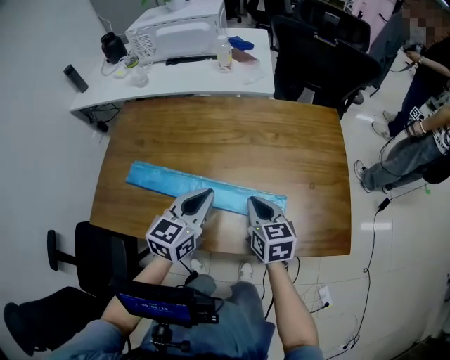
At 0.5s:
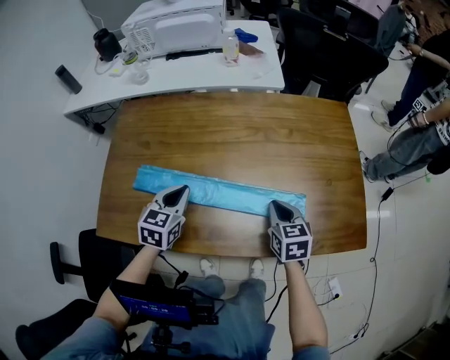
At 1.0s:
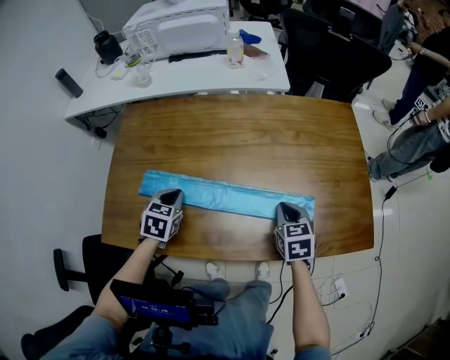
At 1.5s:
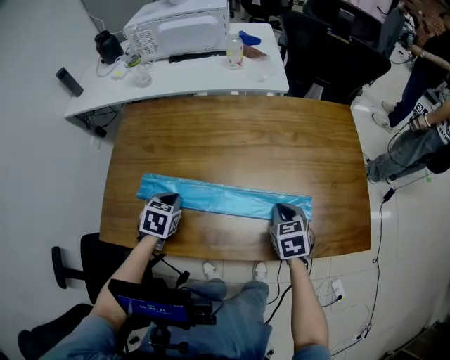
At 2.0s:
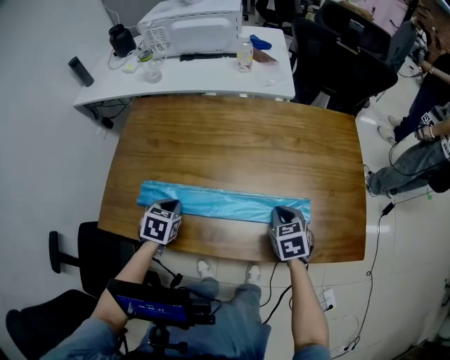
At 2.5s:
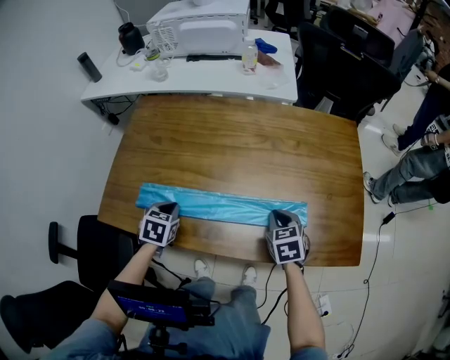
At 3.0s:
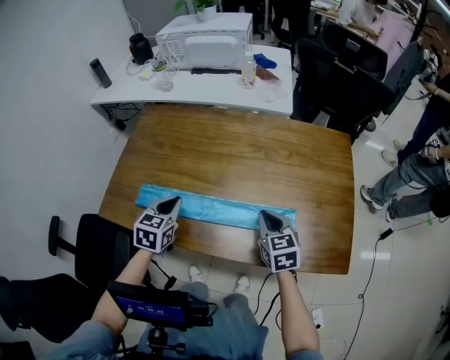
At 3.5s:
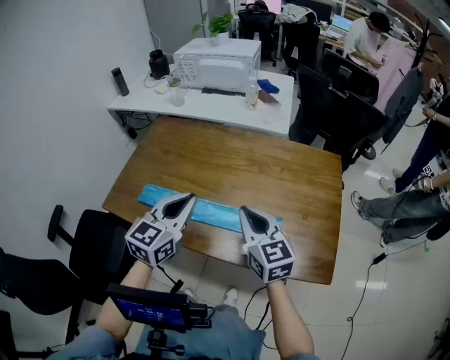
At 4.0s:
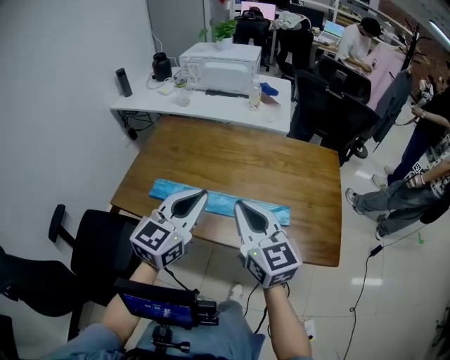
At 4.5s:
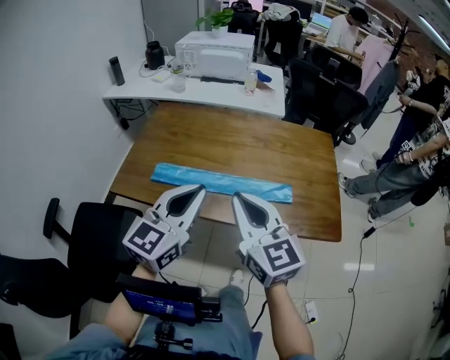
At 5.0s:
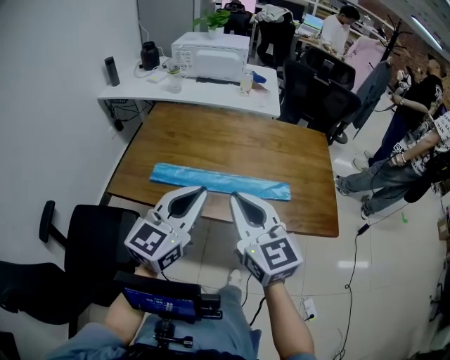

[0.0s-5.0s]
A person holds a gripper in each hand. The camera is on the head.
0.0s to 2.5s: The right gripper shifts approximately 5 cm downward, and rotates some 30 degrees; the left gripper goes some 25 cm to the left and downward, and angles its fingers downward, by roughly 40 degrees.
2.5s to 5.0s: The left gripper travels upward and backward by roughly 35 cm, and points its fingers about 60 degrees further upward, while the right gripper is displaced upward, backward and to the left by some 40 cm, and tips its fingers upward by some 40 degrees.

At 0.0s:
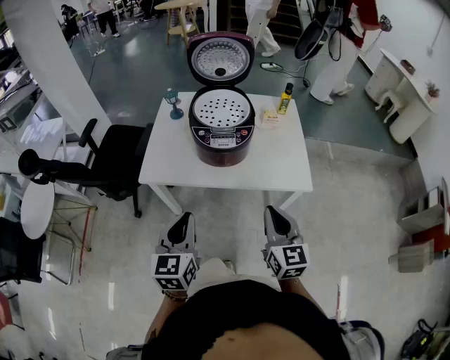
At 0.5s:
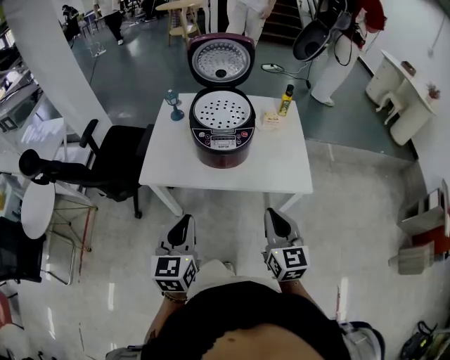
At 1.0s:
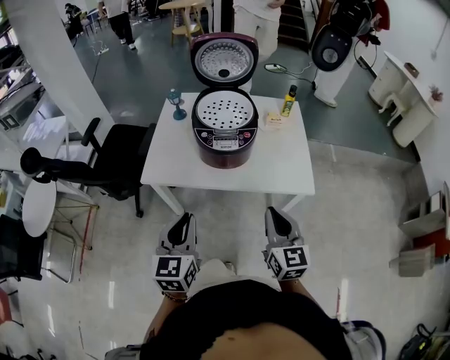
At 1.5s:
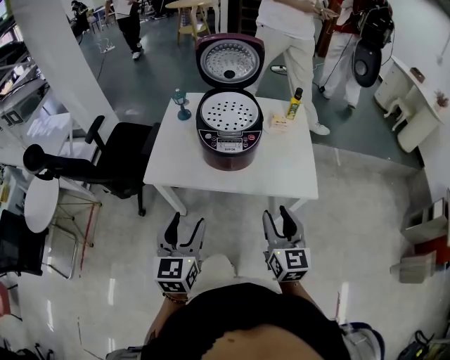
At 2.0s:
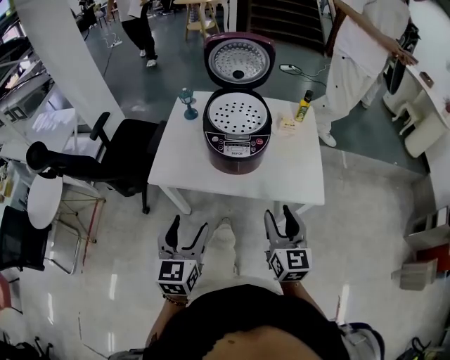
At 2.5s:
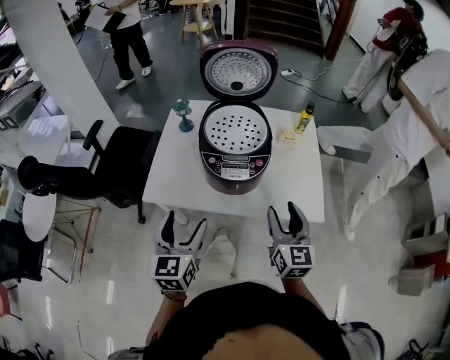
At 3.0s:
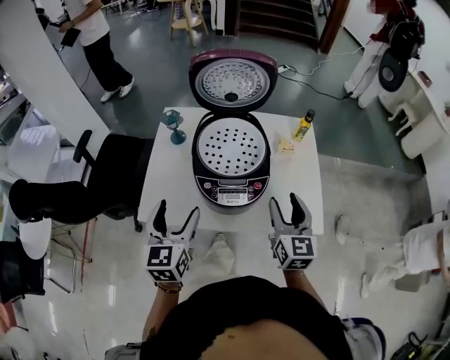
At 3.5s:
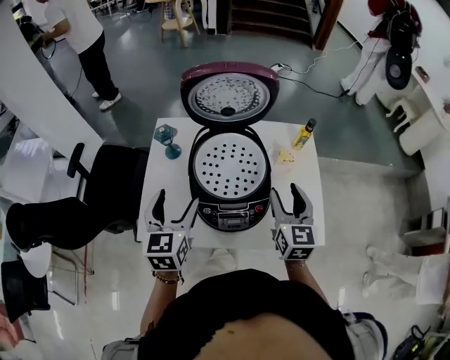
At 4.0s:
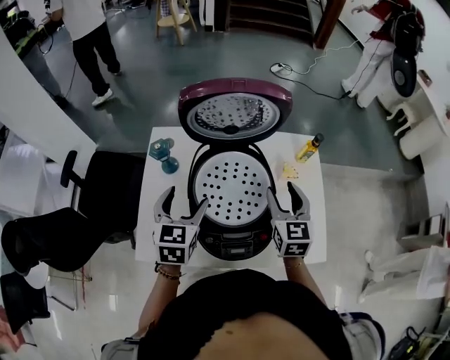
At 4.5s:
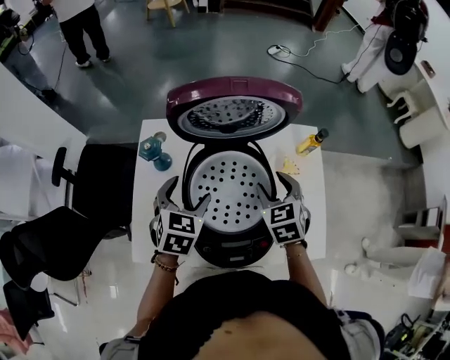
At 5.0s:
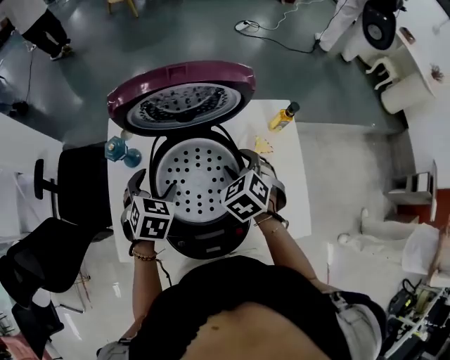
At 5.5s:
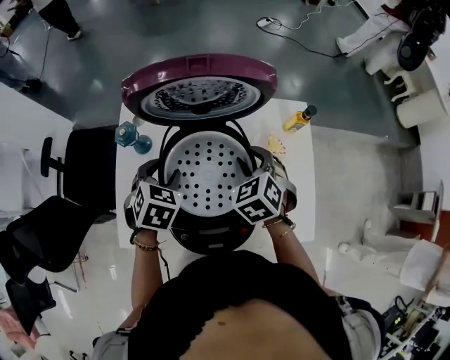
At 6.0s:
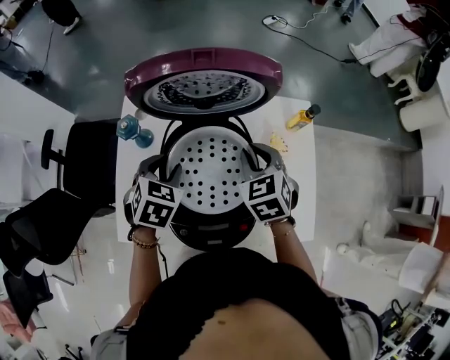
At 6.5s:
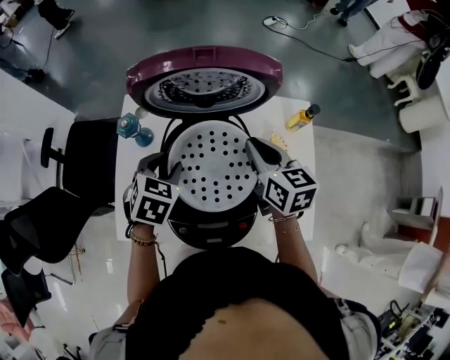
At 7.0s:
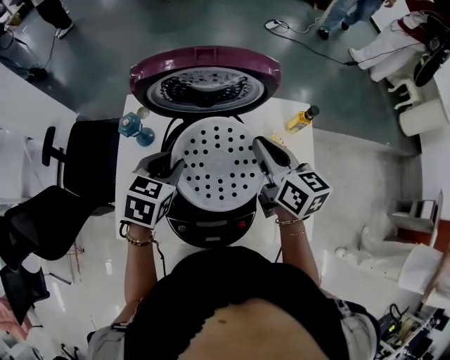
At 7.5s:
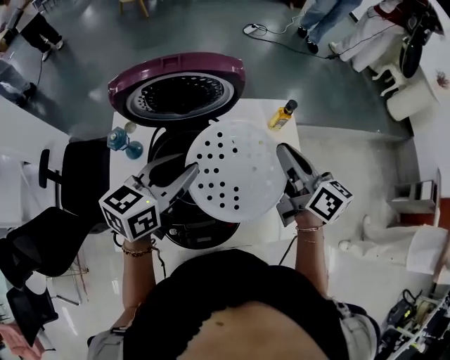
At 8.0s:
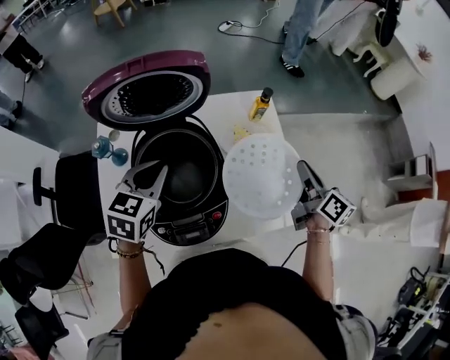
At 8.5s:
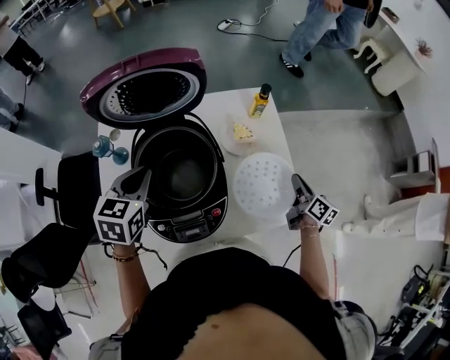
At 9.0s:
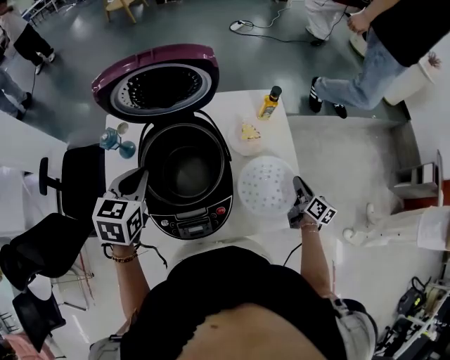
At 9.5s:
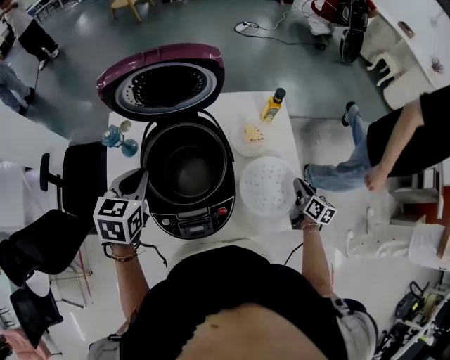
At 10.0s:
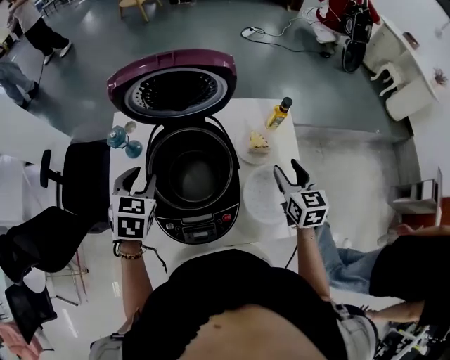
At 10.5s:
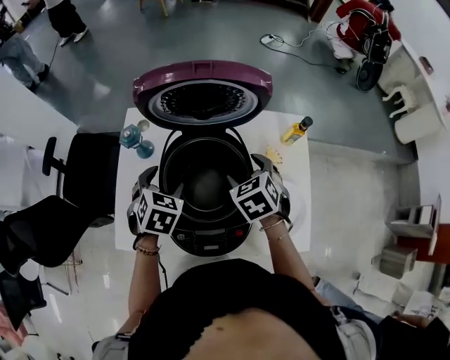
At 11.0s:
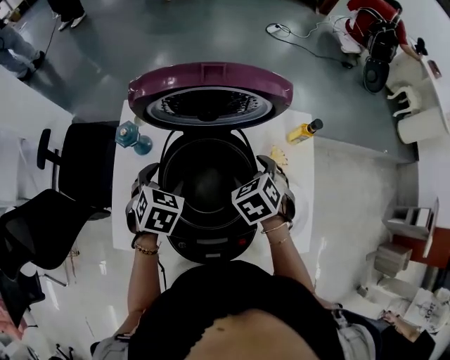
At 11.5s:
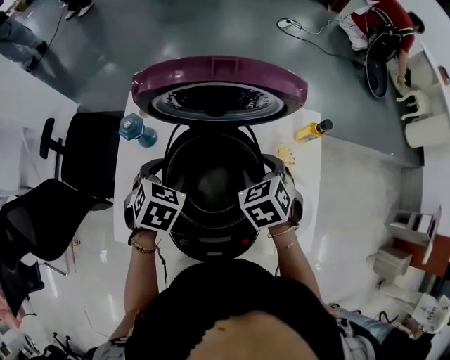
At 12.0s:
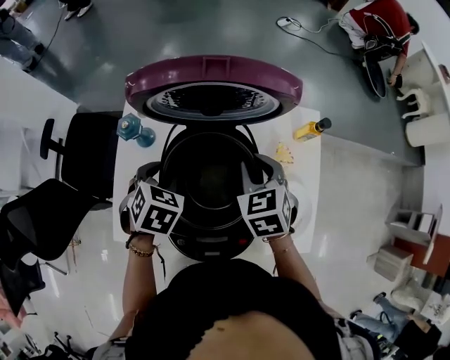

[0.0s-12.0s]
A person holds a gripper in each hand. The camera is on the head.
0.0s to 2.0s: The right gripper opens its fingers. Meanwhile the left gripper opens.
2.0s to 4.0s: Both grippers move forward, approximately 40 cm.
4.0s to 6.0s: The grippers both shift forward by roughly 5 cm. The left gripper changes its angle by approximately 30 degrees, and closes its fingers. The right gripper turns by approximately 30 degrees, and closes.
6.0s to 8.0s: The left gripper heads to the right and upward, covering approximately 10 cm, and turns by some 20 degrees. Meanwhile the right gripper goes approximately 30 cm to the right, and twists roughly 70 degrees clockwise, seen from behind.
8.0s to 10.0s: The two grippers go roughly 10 cm to the left. The left gripper changes its angle by roughly 20 degrees; the right gripper reaches some 20 cm downward, then returns, rotates around the line of its fingers by some 40 degrees, counterclockwise from behind, and opens.
10.0s to 12.0s: The right gripper goes approximately 20 cm to the left and forward, turns by approximately 30 degrees, and closes up; the left gripper ends up roughly 5 cm from where it was, and opens, then closes once more.

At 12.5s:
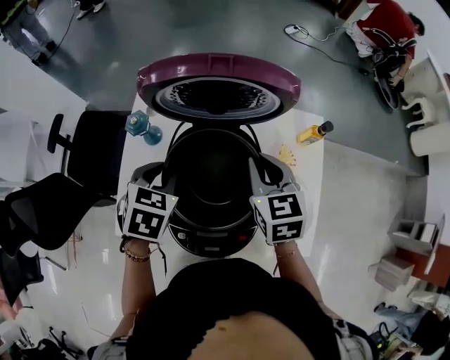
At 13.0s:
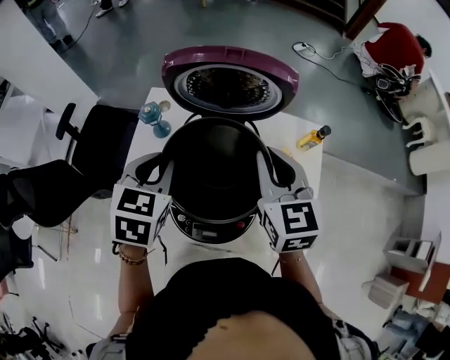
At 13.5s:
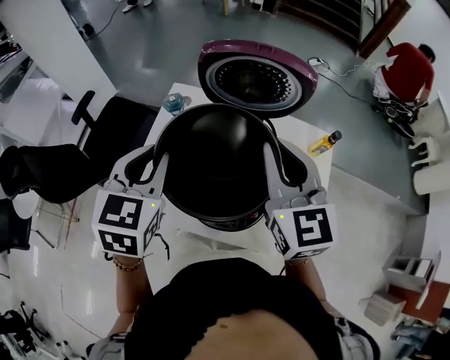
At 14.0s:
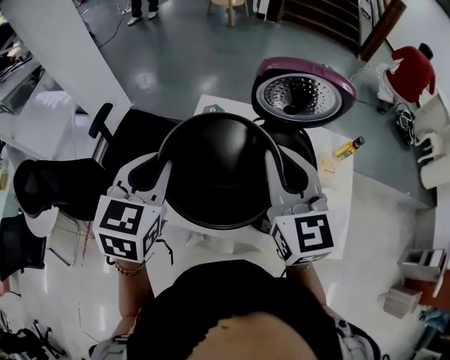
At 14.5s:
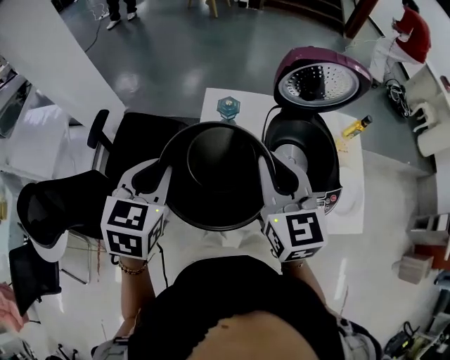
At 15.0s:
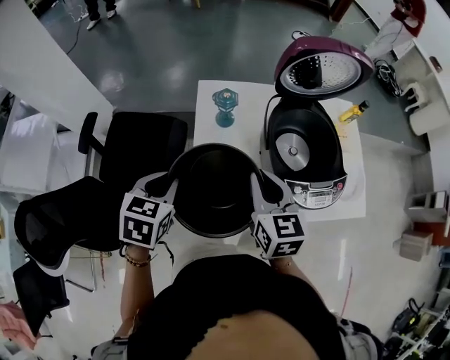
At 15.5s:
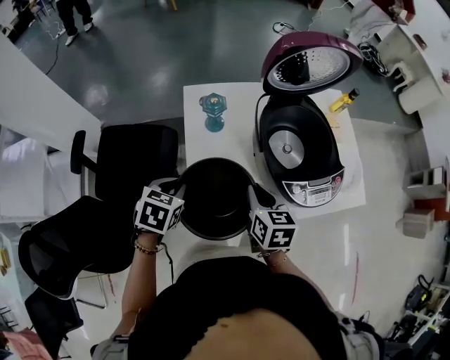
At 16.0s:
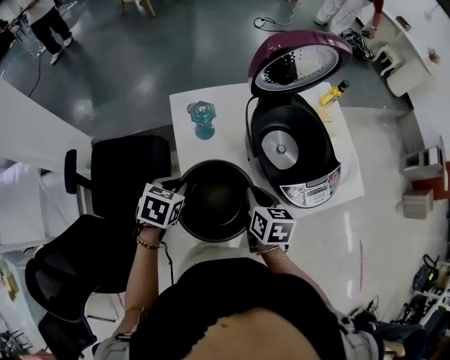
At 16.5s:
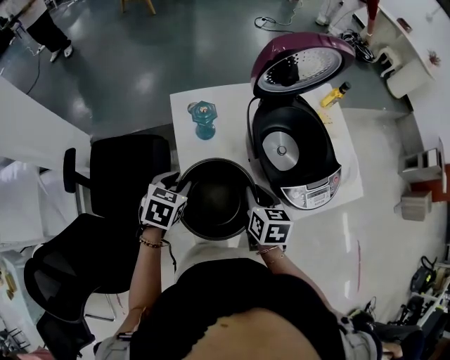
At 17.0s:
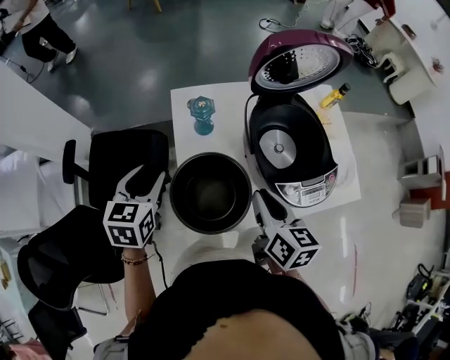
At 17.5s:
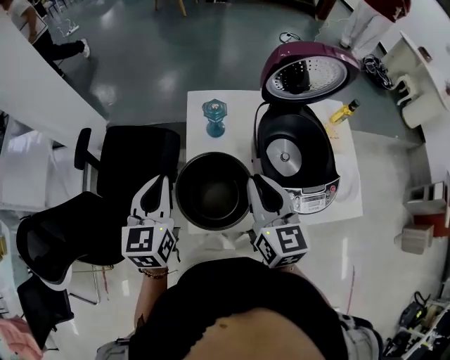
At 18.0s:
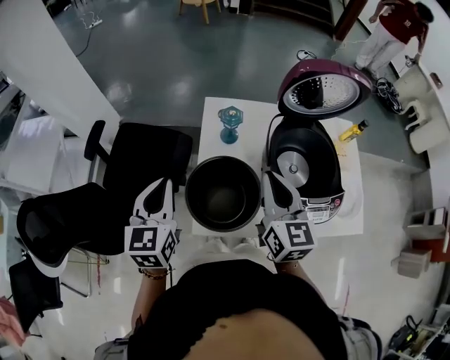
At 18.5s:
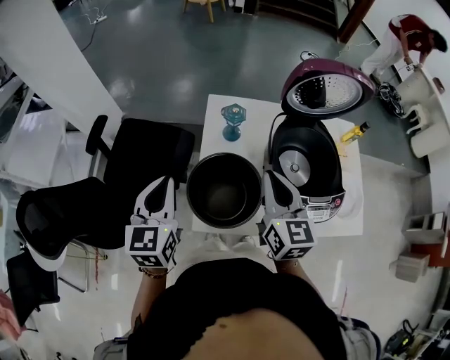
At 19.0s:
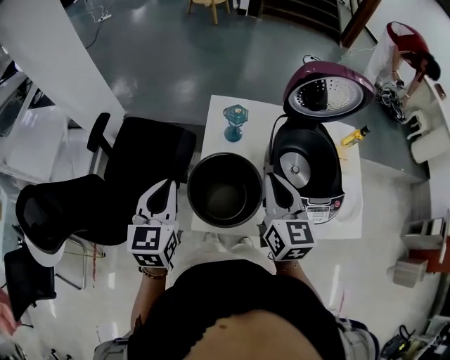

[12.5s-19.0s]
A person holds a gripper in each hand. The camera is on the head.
12.5s to 14.5s: The right gripper heads to the left and upward, covering some 30 cm, and turns by approximately 20 degrees; the left gripper travels to the left by roughly 30 cm, and swivels roughly 20 degrees.
14.5s to 17.0s: Both grippers travel together downward, approximately 15 cm. The right gripper turns by some 40 degrees, while the left gripper opens.
17.0s to 19.0s: The left gripper heads backward and upward, covering about 10 cm, turns by approximately 20 degrees, and closes up, while the right gripper travels upward by approximately 5 cm, and turns by some 30 degrees.

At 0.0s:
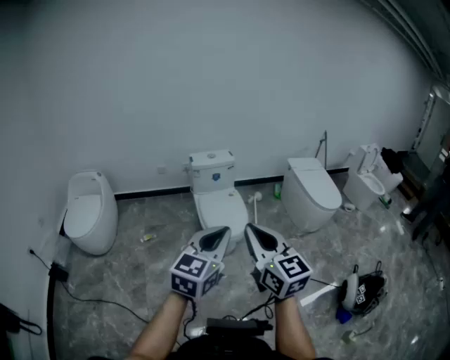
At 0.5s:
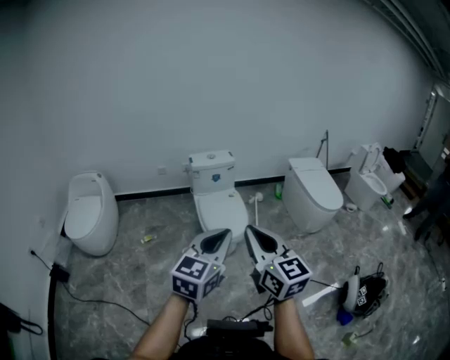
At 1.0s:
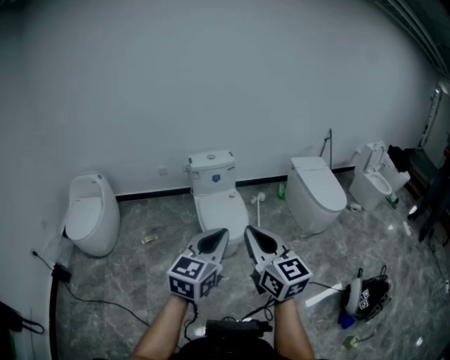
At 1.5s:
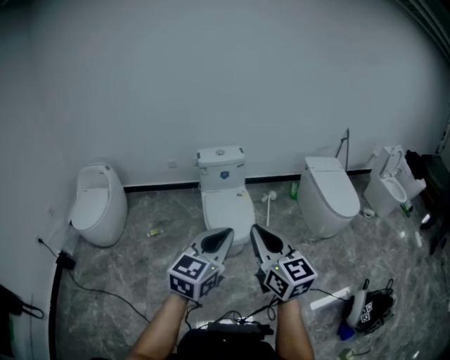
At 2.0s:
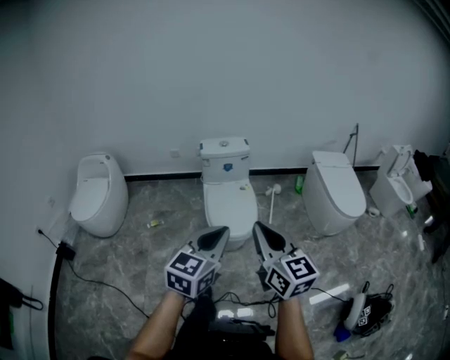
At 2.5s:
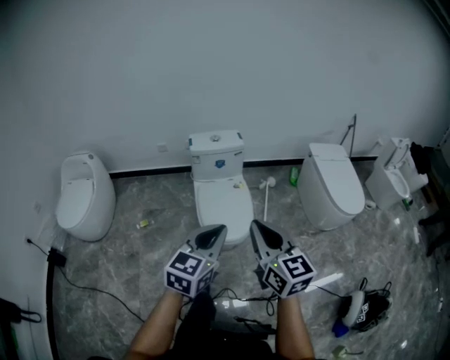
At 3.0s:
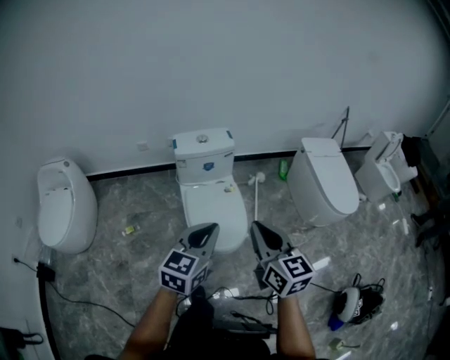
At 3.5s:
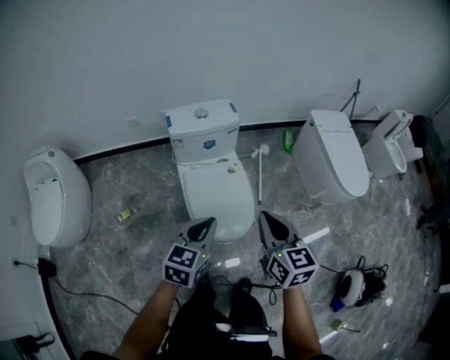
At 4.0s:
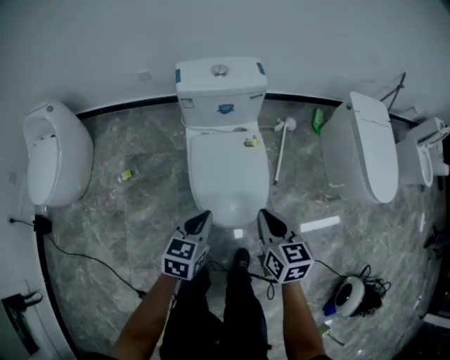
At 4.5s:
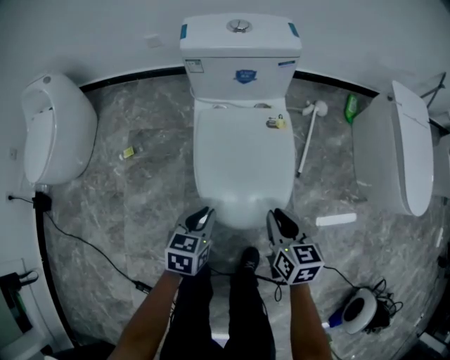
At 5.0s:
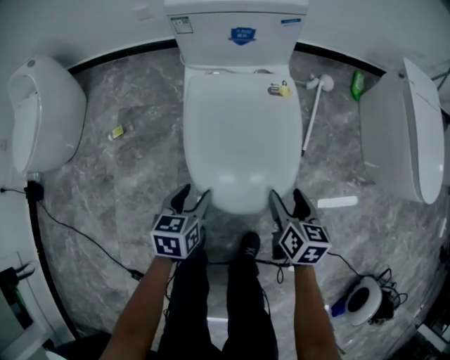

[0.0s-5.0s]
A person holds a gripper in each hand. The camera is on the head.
0.0s to 2.5s: The right gripper travels forward by some 20 cm. The left gripper shifts about 25 cm forward and downward.
2.5s to 5.0s: The left gripper travels downward by about 50 cm, points its fingers some 30 degrees further downward, and opens its fingers; the right gripper heads downward and forward, covering about 60 cm, tilts its fingers roughly 30 degrees downward, and opens.
